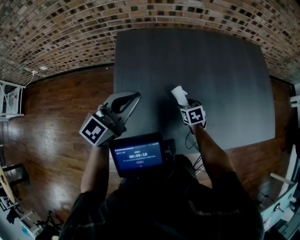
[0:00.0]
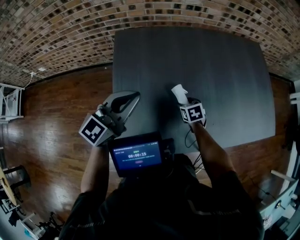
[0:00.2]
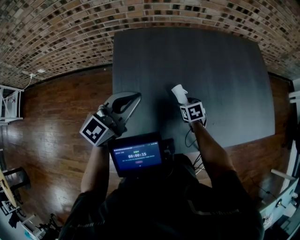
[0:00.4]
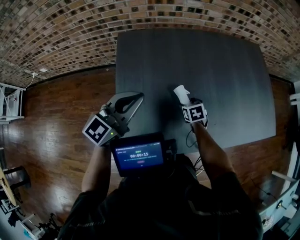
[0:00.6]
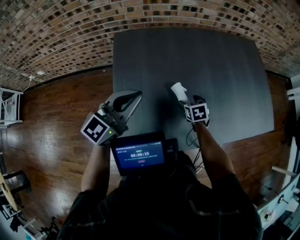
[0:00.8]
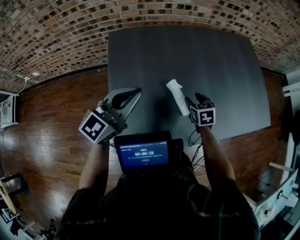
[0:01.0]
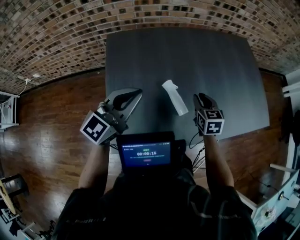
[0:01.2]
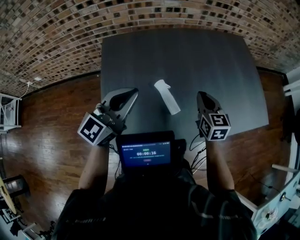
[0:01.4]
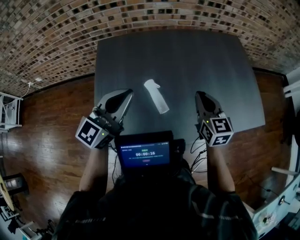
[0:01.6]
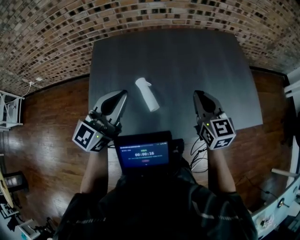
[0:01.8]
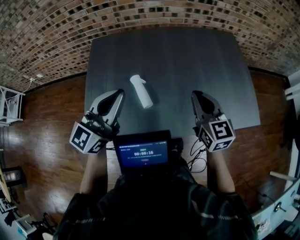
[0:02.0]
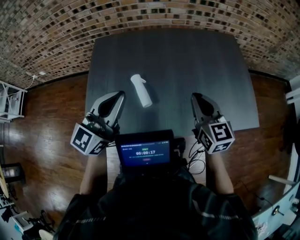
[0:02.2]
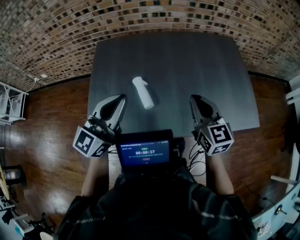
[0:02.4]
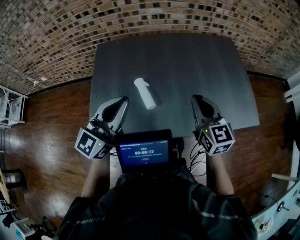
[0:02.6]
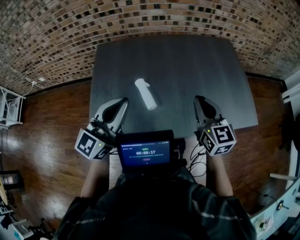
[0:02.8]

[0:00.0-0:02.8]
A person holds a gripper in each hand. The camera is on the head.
0.0 to 1.4 s: The left gripper shifts some 10 cm to the right. Meanwhile the right gripper goes some 25 cm upward and to the right, tips its fingers upward by about 40 degrees, and closes.
1.4 to 2.8 s: The right gripper heads to the right, upward and backward, covering roughly 15 cm, while the left gripper is displaced to the right and backward by some 15 cm.

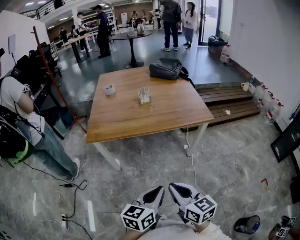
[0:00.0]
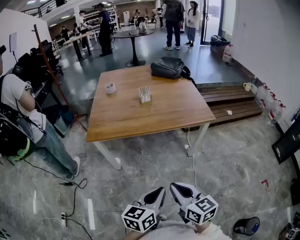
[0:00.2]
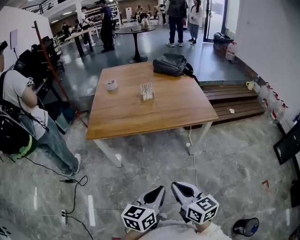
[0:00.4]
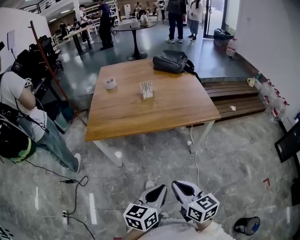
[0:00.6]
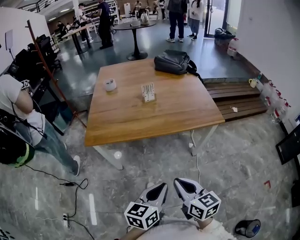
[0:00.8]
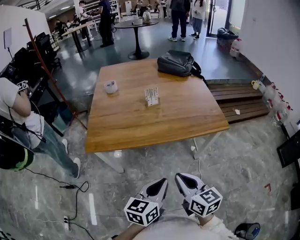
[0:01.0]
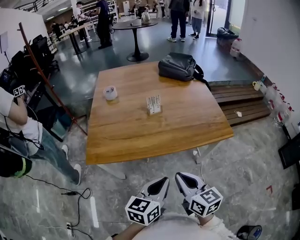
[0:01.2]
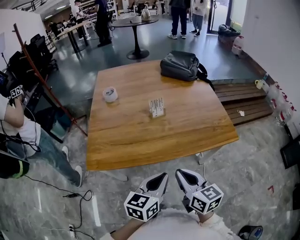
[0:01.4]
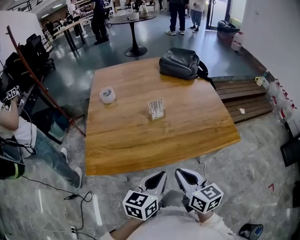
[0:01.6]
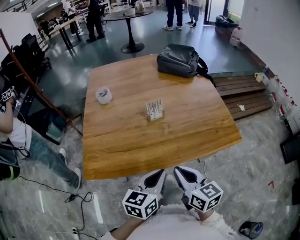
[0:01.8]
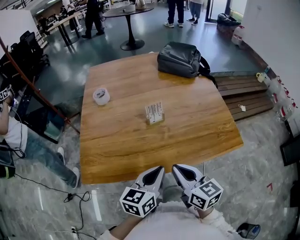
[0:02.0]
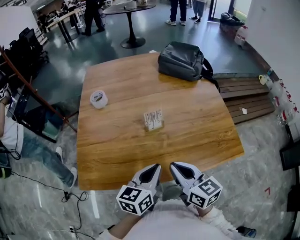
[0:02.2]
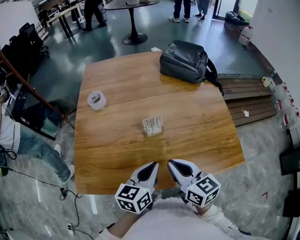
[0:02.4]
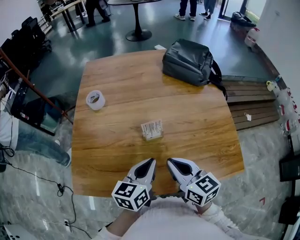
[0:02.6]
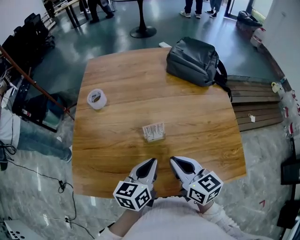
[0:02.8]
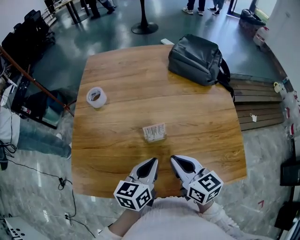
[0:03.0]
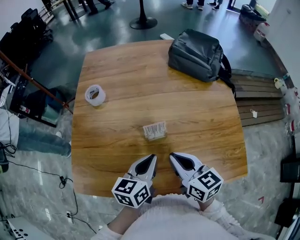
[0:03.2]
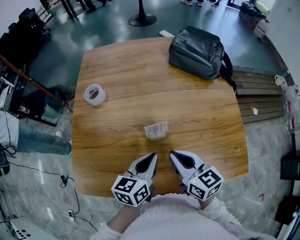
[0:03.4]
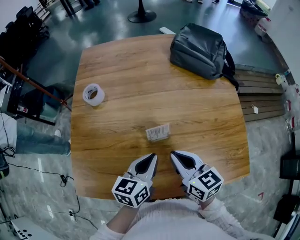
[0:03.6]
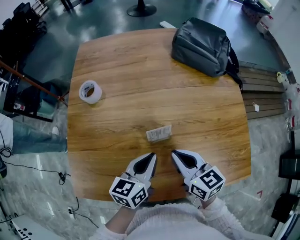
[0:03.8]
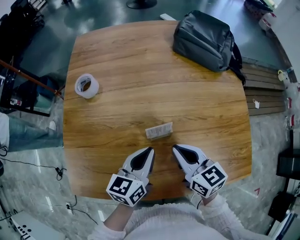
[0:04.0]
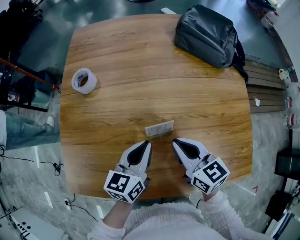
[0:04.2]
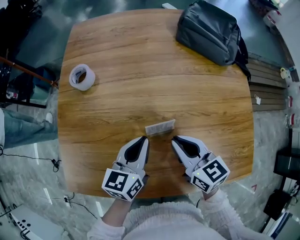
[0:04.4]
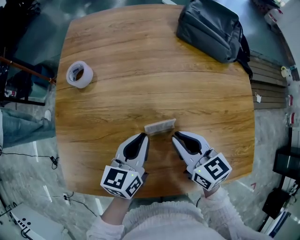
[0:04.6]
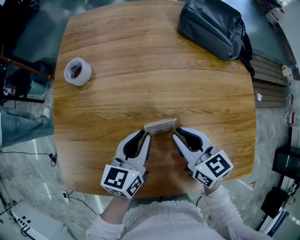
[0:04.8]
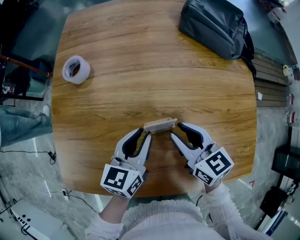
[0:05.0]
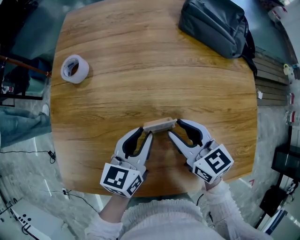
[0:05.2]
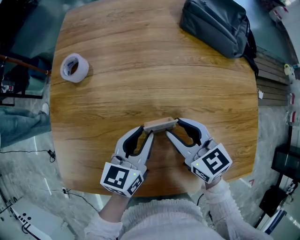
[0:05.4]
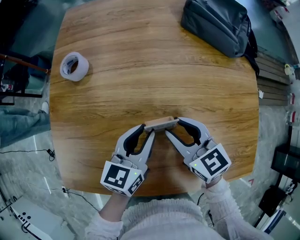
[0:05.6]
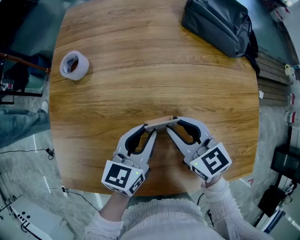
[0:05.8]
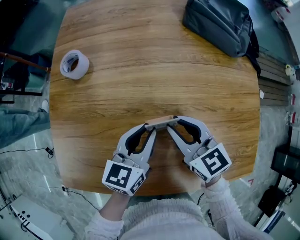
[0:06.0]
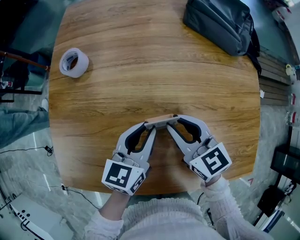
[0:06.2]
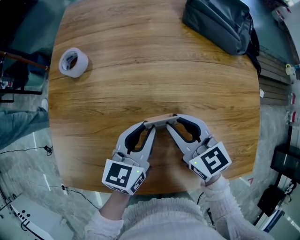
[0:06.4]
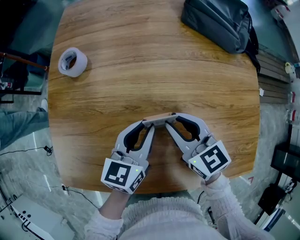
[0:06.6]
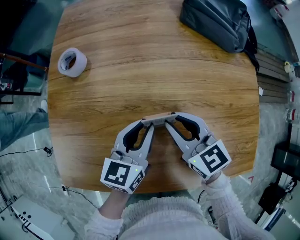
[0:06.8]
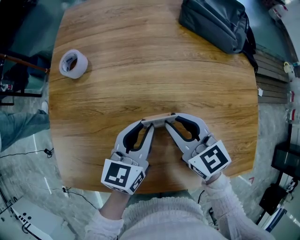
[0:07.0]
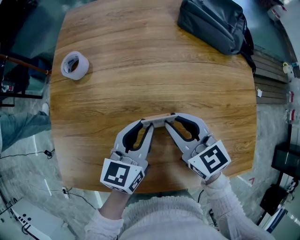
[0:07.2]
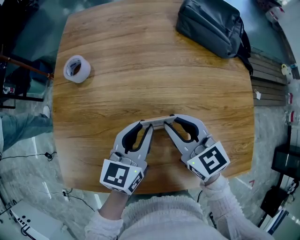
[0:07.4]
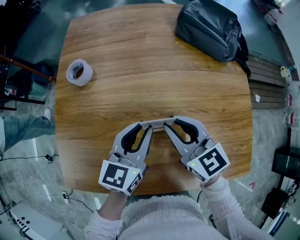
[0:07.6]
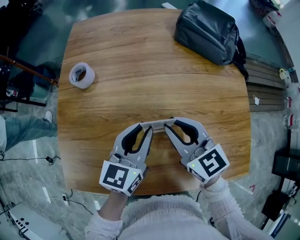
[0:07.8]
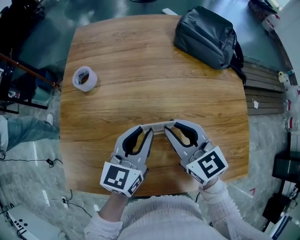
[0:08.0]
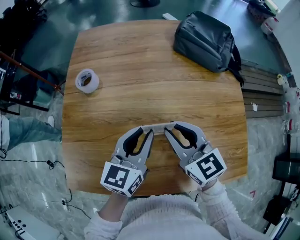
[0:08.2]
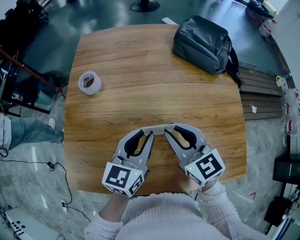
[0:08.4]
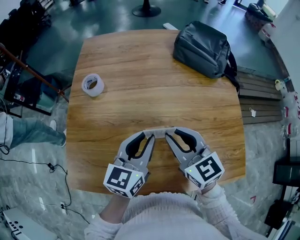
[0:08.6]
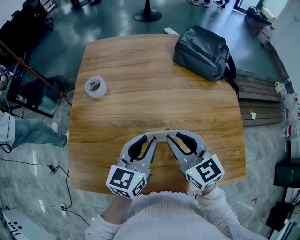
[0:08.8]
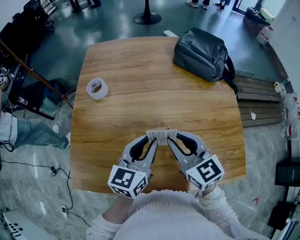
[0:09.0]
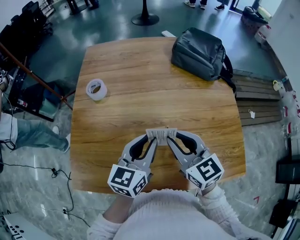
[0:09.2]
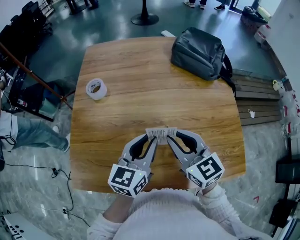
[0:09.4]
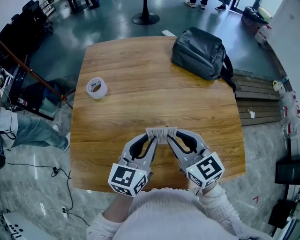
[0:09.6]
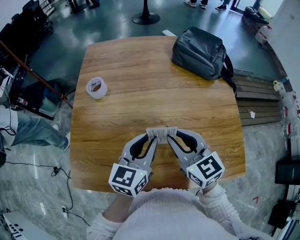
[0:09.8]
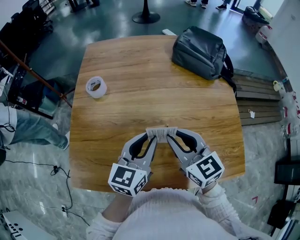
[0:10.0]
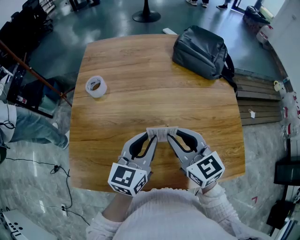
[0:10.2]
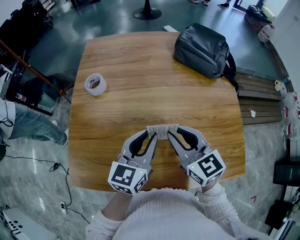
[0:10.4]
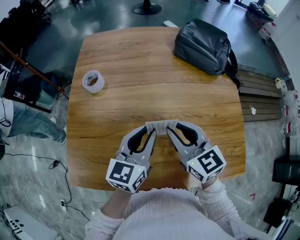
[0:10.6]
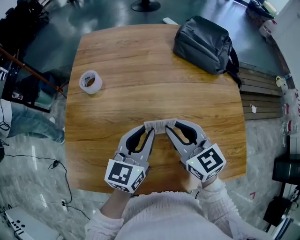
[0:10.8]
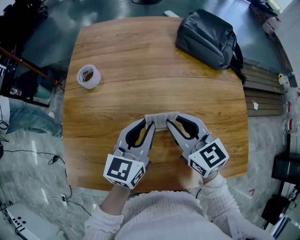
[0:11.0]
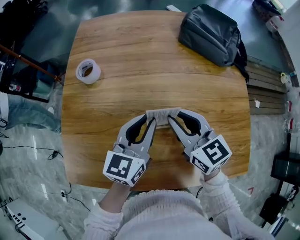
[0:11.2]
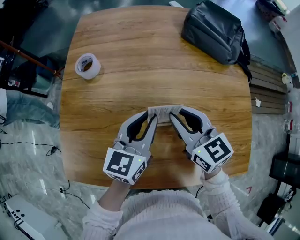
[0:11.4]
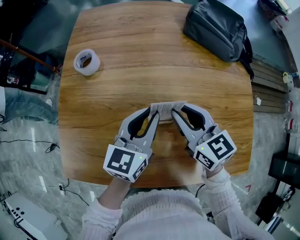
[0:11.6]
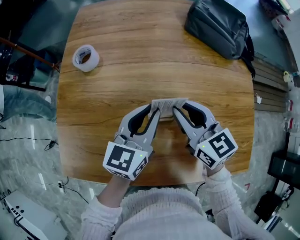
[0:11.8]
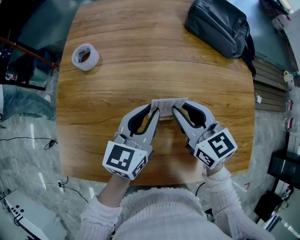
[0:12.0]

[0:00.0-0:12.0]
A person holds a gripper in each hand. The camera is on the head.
0.0 to 1.6 s: The two grippers go about 35 cm forward.
1.6 to 3.0 s: Both grippers travel together forward, about 25 cm.
3.0 to 4.4 s: The left gripper travels forward by about 10 cm; the right gripper moves forward and downward, about 10 cm.
4.4 to 6.0 s: The right gripper changes place by roughly 5 cm.
6.0 to 7.6 s: The two grippers go roughly 5 cm upward.
7.6 to 9.0 s: The two grippers go about 10 cm backward and upward.
9.0 to 10.4 s: Neither gripper changes place.
10.4 to 12.0 s: The left gripper travels forward and downward by roughly 10 cm, while the right gripper shifts roughly 10 cm downward and forward.

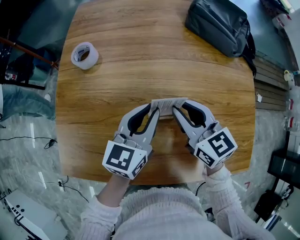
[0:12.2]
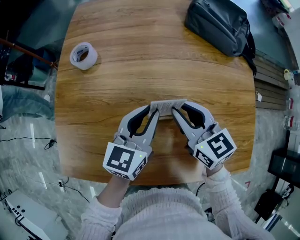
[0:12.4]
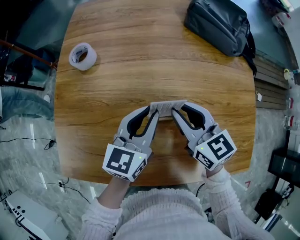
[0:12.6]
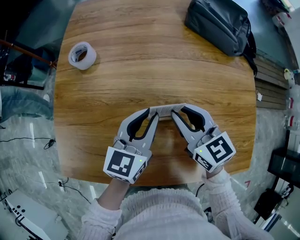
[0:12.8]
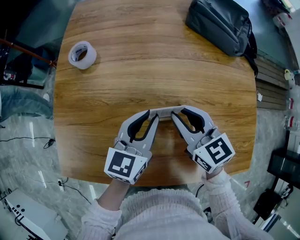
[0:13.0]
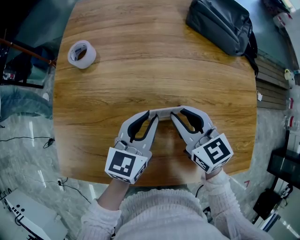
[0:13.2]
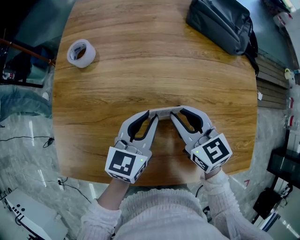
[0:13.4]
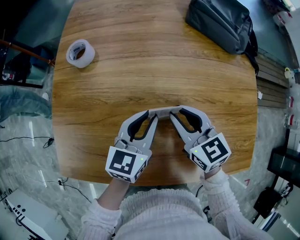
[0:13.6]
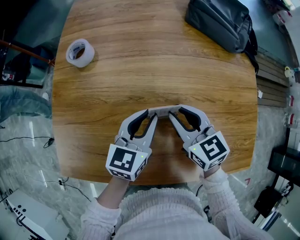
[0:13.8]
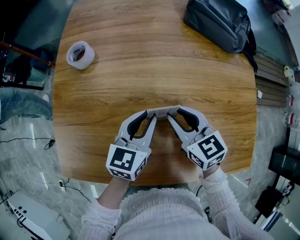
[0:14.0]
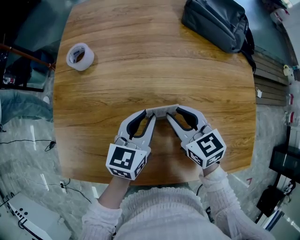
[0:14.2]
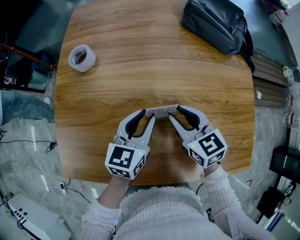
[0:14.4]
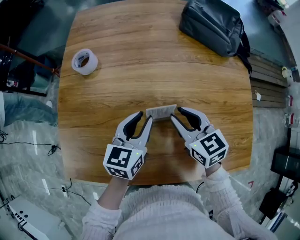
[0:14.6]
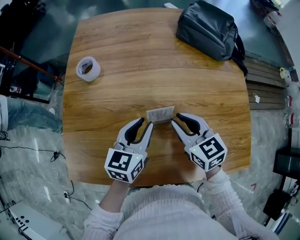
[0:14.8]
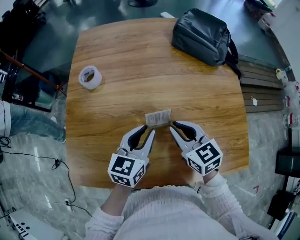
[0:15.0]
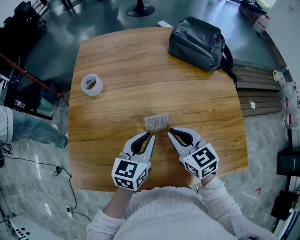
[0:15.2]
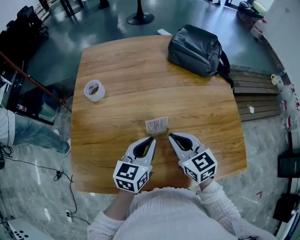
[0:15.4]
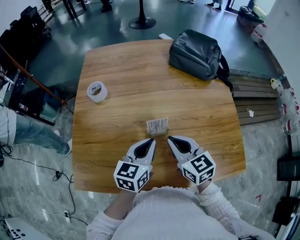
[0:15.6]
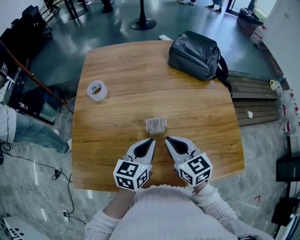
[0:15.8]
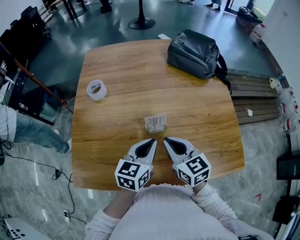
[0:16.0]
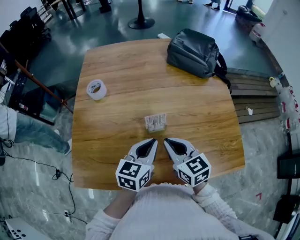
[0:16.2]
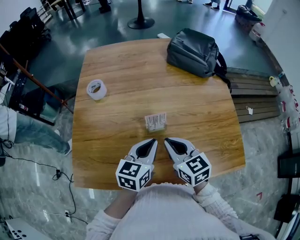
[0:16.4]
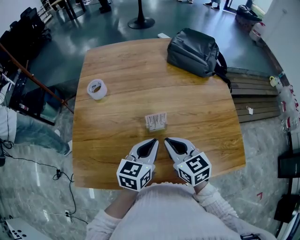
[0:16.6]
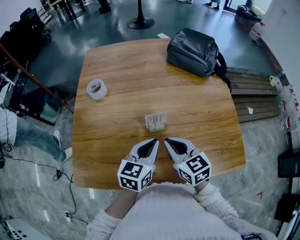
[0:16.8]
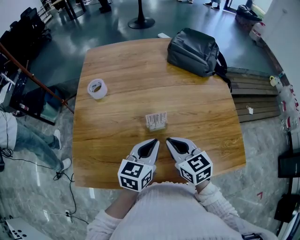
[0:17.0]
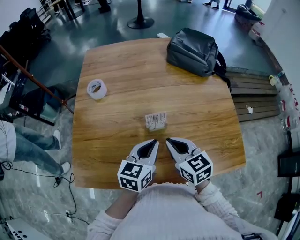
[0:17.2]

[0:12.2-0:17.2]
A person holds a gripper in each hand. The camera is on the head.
12.2 to 13.8 s: The left gripper ends up some 5 cm from where it was.
13.8 to 15.6 s: Both grippers travel together backward and upward, about 10 cm. The right gripper closes its fingers.
15.6 to 17.2 s: The grippers move only a little.

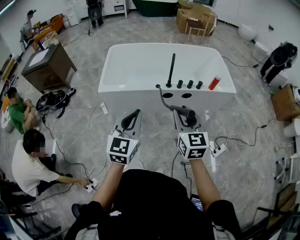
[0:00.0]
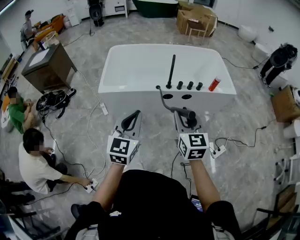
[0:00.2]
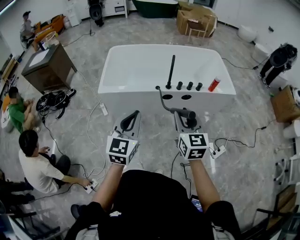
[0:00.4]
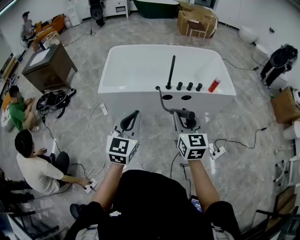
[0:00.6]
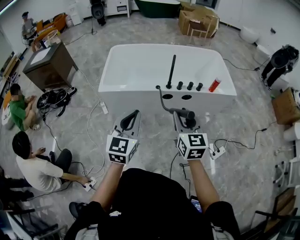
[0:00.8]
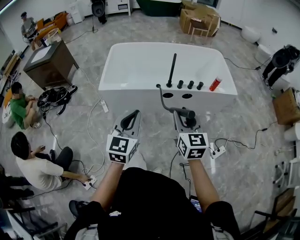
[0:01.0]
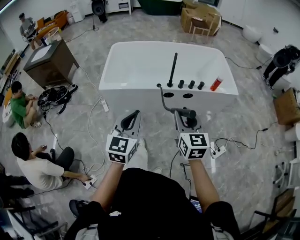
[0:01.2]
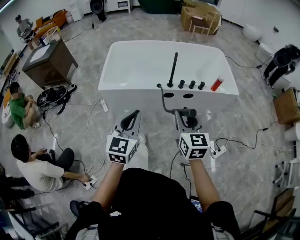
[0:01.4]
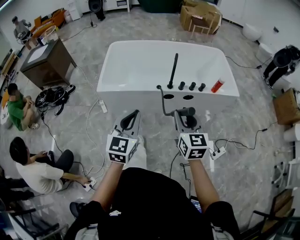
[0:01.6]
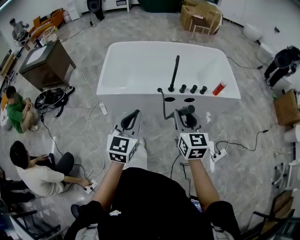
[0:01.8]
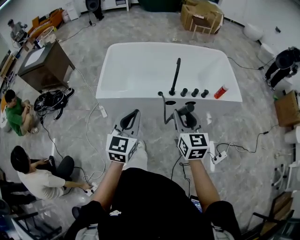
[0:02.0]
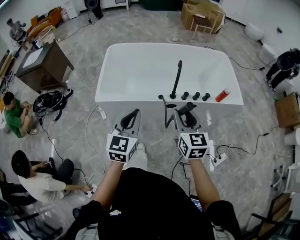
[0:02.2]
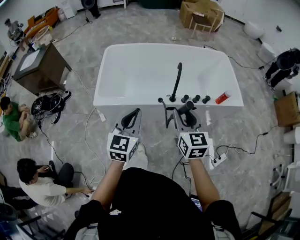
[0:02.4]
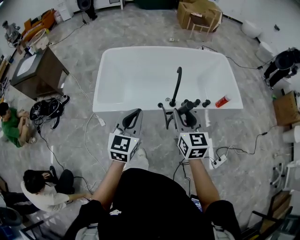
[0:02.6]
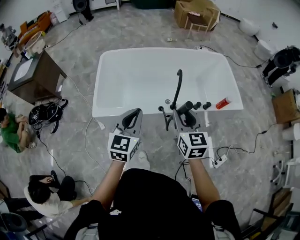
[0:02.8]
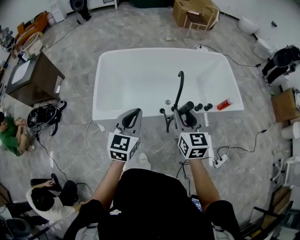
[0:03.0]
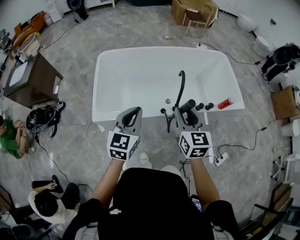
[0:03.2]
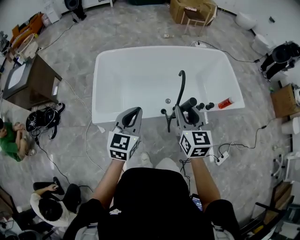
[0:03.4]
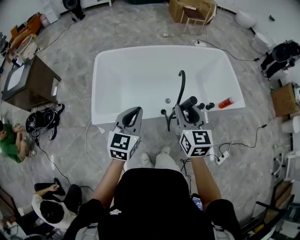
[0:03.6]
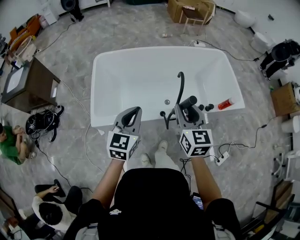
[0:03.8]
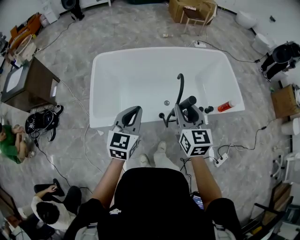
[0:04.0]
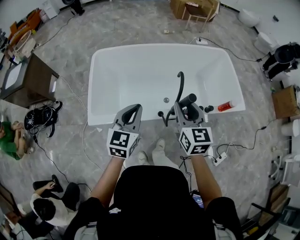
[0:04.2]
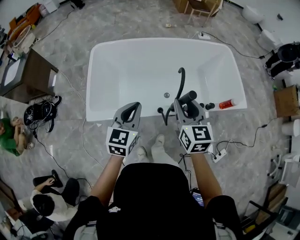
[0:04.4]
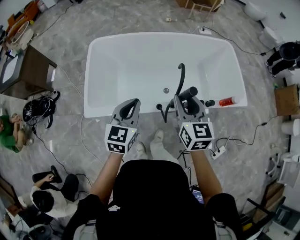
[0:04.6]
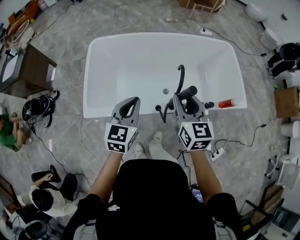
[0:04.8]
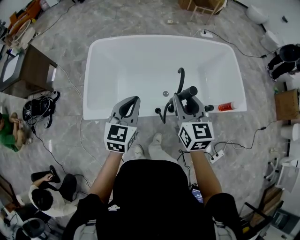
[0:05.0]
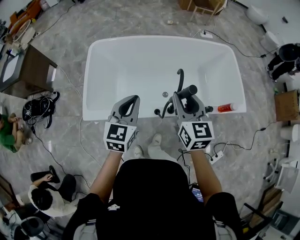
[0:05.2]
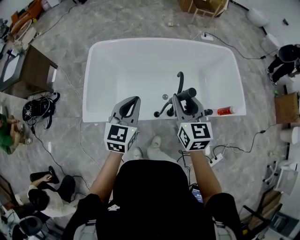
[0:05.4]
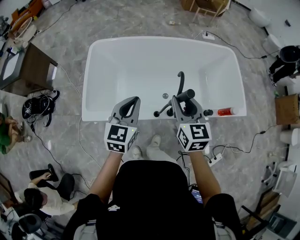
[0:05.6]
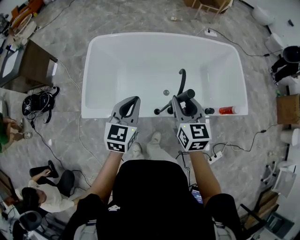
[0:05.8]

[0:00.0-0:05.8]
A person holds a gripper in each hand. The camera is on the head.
0.0 to 1.4 s: The grippers stay close to where they were, moving slightly.
1.4 to 2.8 s: Both grippers move forward, some 30 cm.
2.8 to 4.4 s: The right gripper goes approximately 15 cm forward; the left gripper shifts approximately 15 cm forward and downward.
4.4 to 5.8 s: The two grippers go some 5 cm forward.
